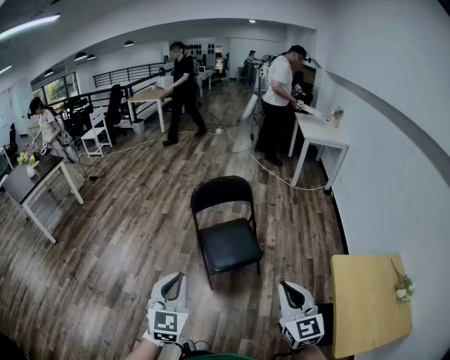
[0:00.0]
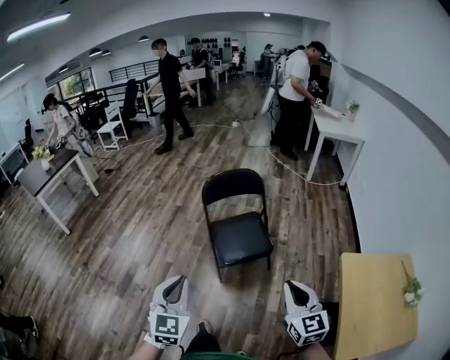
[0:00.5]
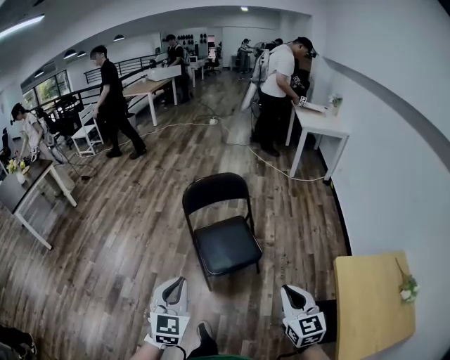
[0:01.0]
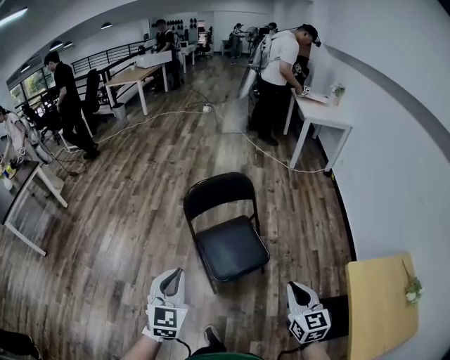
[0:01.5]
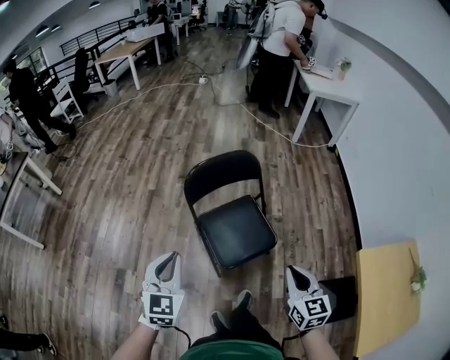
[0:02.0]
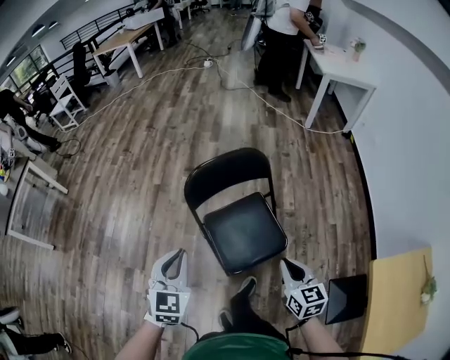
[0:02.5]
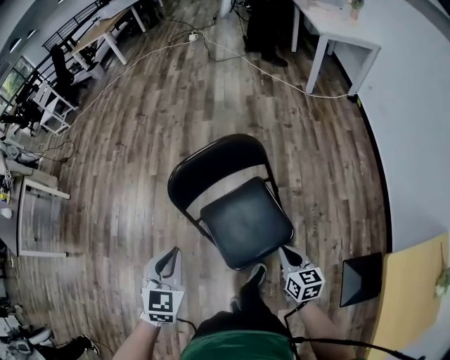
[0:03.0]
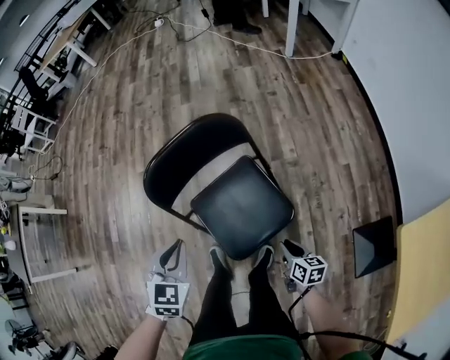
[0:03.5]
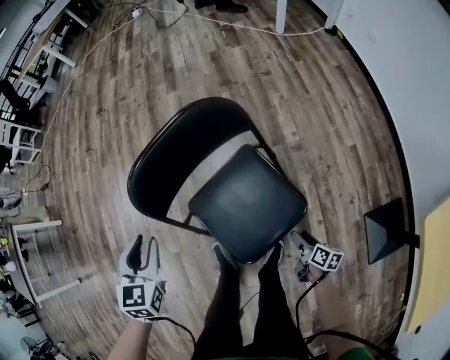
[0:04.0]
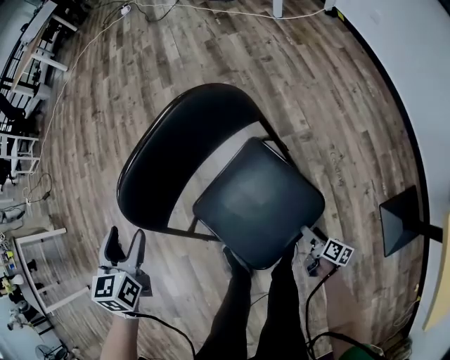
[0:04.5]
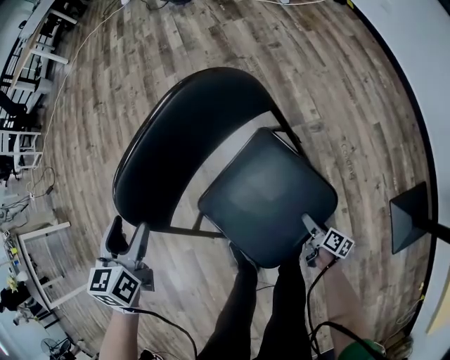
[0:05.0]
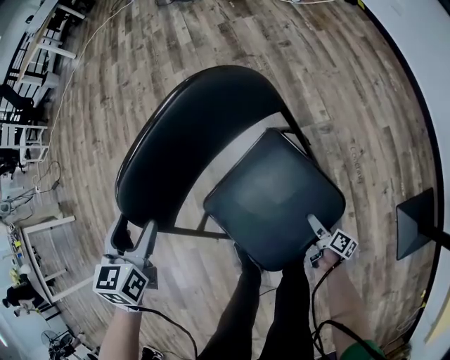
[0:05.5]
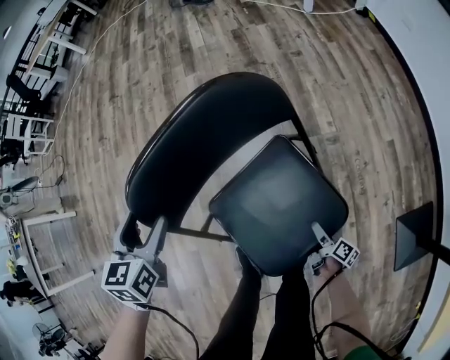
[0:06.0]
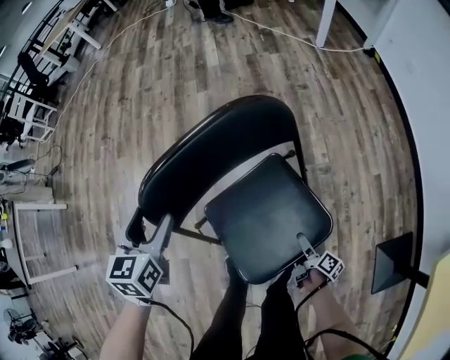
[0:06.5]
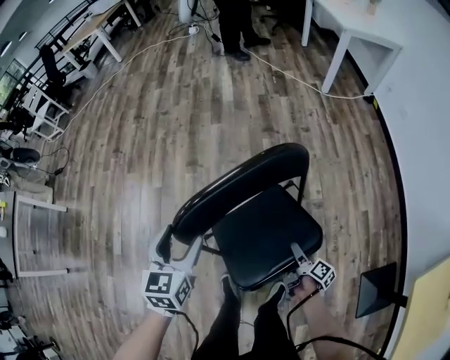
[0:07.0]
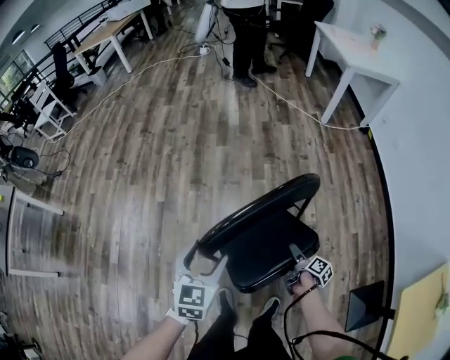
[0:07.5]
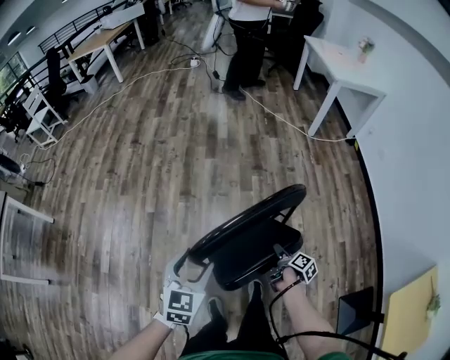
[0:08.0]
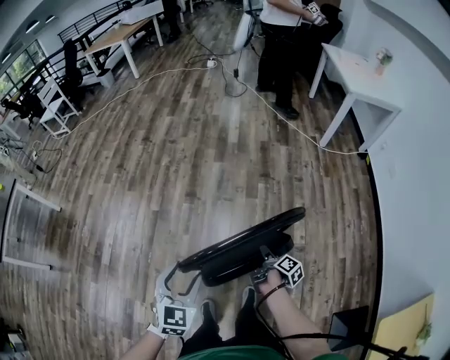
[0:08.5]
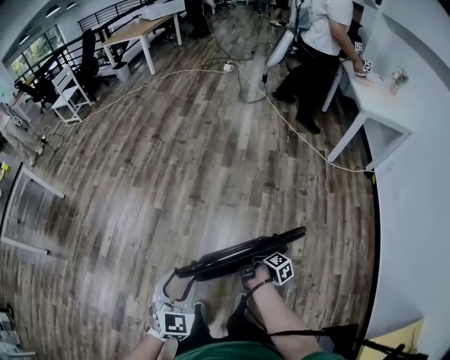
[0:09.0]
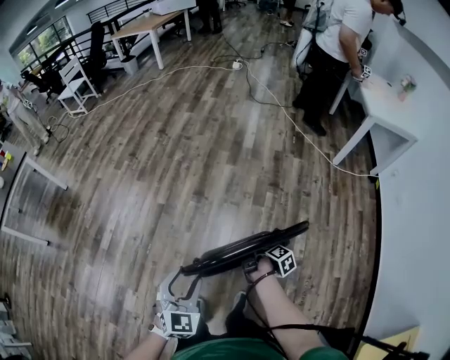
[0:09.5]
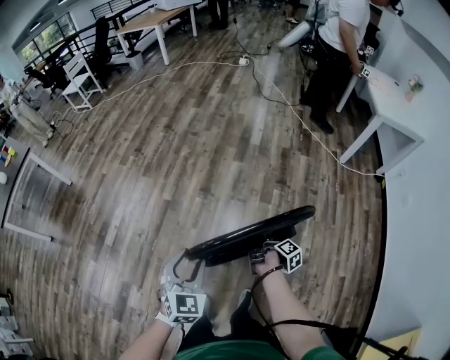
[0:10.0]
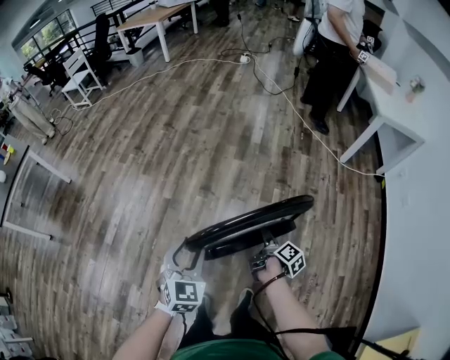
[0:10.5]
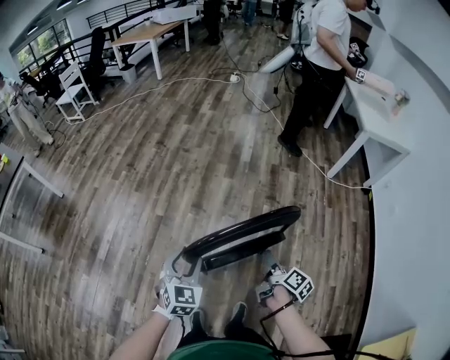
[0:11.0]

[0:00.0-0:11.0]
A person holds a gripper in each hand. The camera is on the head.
0:00.0 to 0:02.0: The right gripper shifts about 30 cm forward and downward, and turns by about 20 degrees; the left gripper travels forward by roughly 35 cm.
0:02.0 to 0:03.5: The left gripper heads forward, downward and to the right, covering about 35 cm, and swivels about 30 degrees. Meanwhile the right gripper travels downward and forward by roughly 40 cm, and rotates about 50 degrees.
0:03.5 to 0:05.5: The right gripper shifts some 30 cm downward, twists about 40 degrees clockwise, seen from behind, and opens. Meanwhile the left gripper heads forward, downward and to the left, covering some 30 cm, and opens.
0:05.5 to 0:07.5: The left gripper is displaced upward by approximately 20 cm. Meanwhile the right gripper shifts approximately 35 cm upward and forward.
0:07.5 to 0:09.0: The right gripper goes roughly 20 cm forward, upward and to the left, and closes its fingers.
0:09.0 to 0:11.0: The right gripper heads upward, covering approximately 15 cm, and swivels approximately 30 degrees, while the left gripper shifts some 10 cm forward.

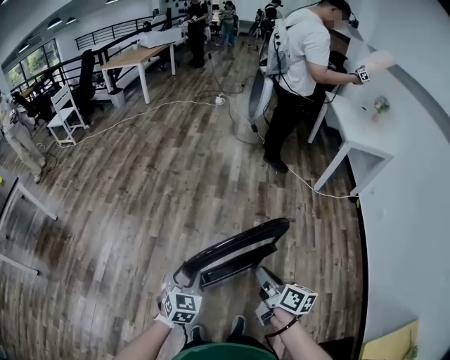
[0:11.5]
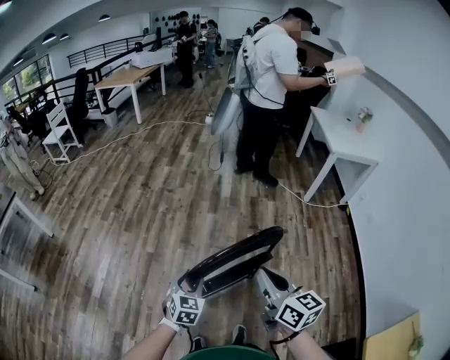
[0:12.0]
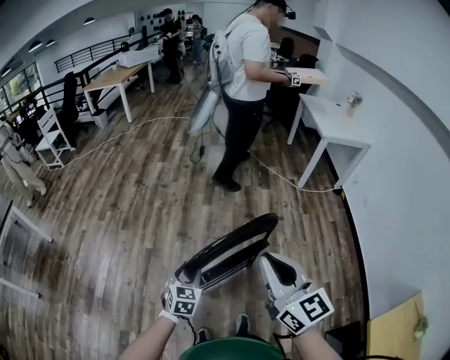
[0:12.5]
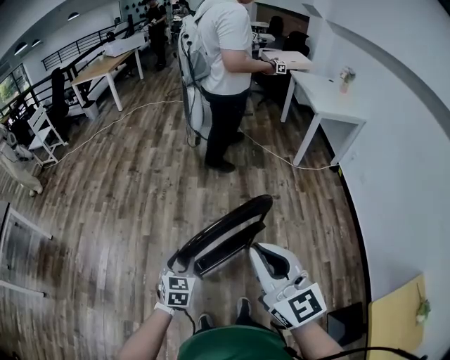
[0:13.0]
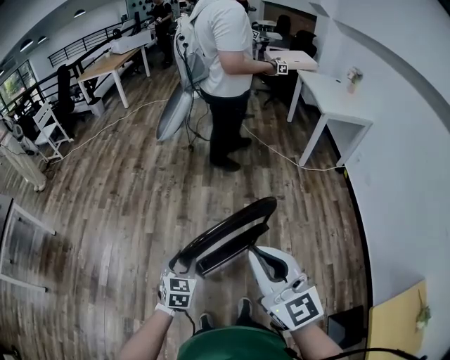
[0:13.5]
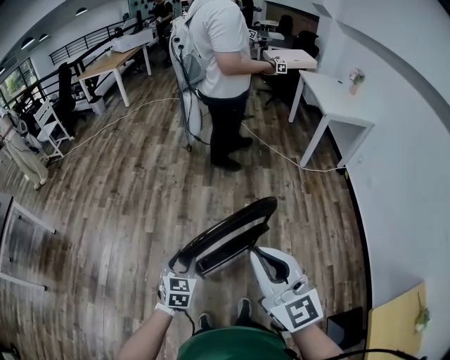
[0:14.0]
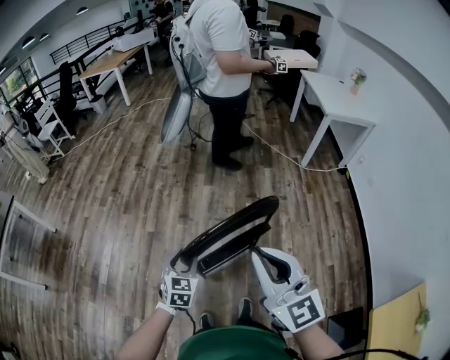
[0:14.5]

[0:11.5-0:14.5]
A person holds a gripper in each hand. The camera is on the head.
0:11.5 to 0:13.0: The right gripper goes some 25 cm upward and backward, and rolls counterclockwise, seen from behind, by some 60 degrees.
0:13.0 to 0:14.5: The grippers move only a little.

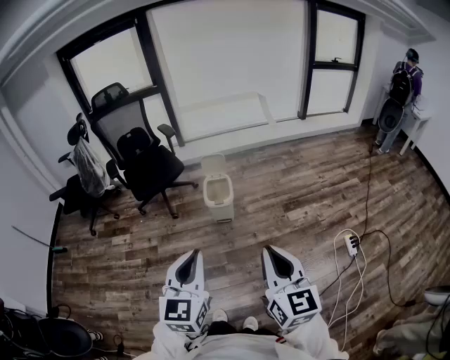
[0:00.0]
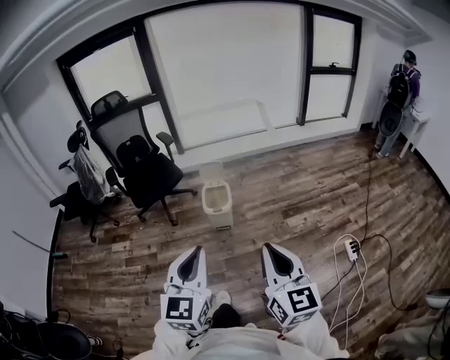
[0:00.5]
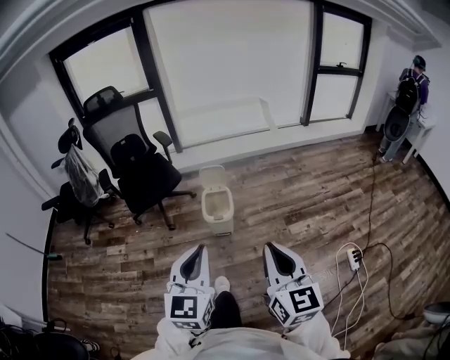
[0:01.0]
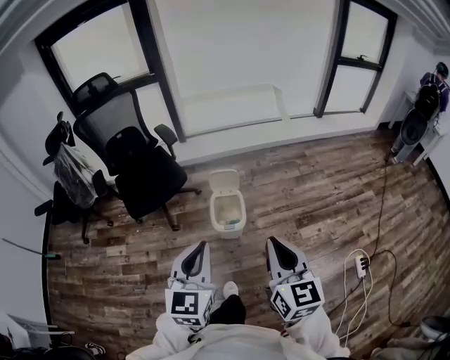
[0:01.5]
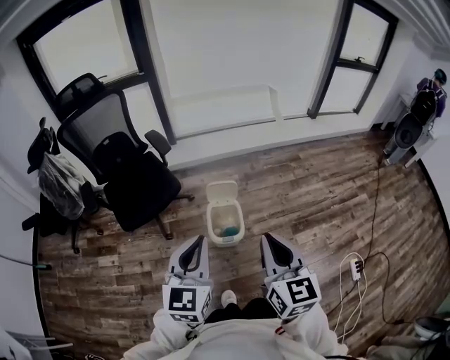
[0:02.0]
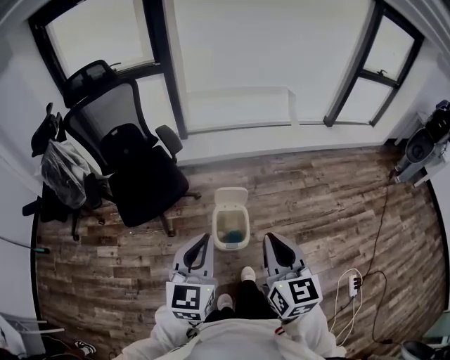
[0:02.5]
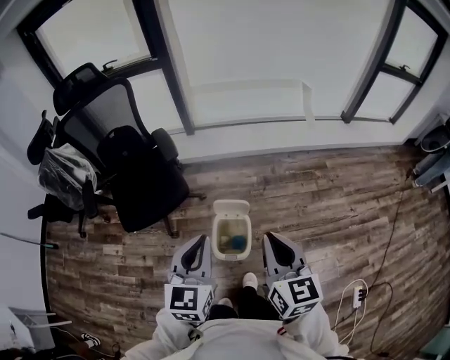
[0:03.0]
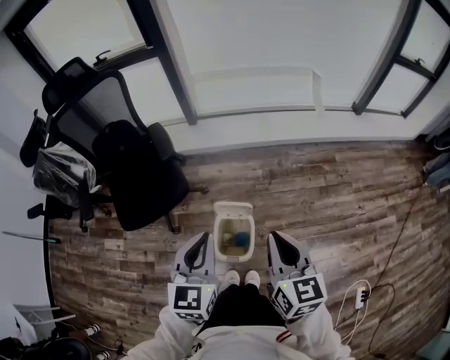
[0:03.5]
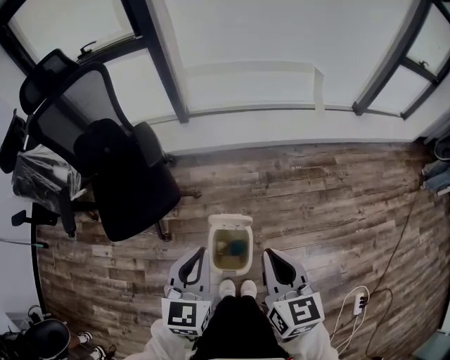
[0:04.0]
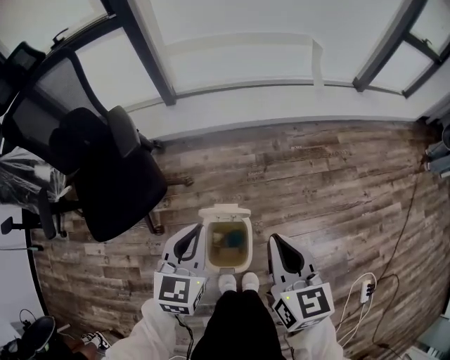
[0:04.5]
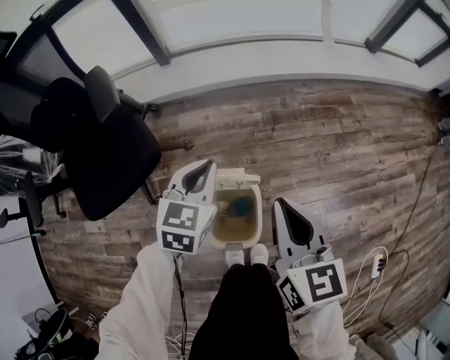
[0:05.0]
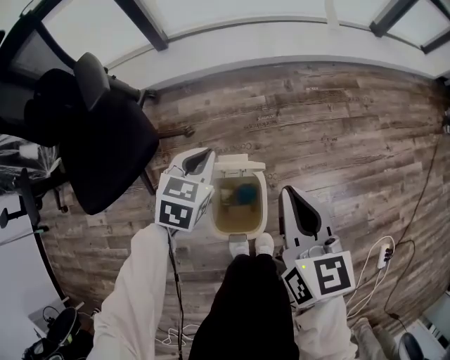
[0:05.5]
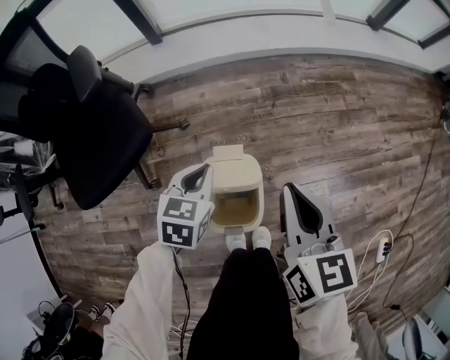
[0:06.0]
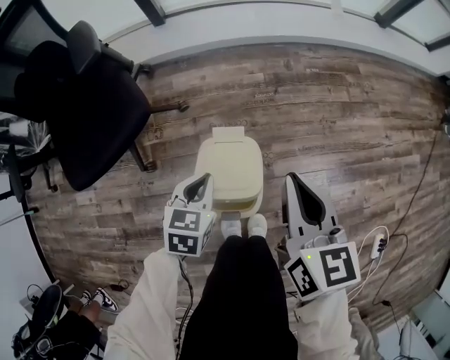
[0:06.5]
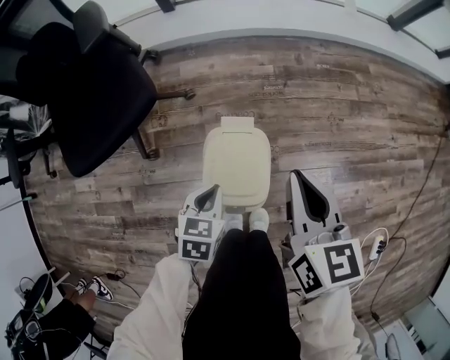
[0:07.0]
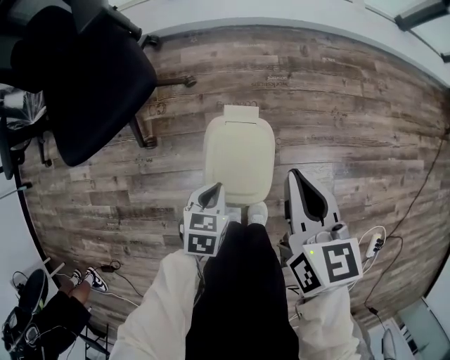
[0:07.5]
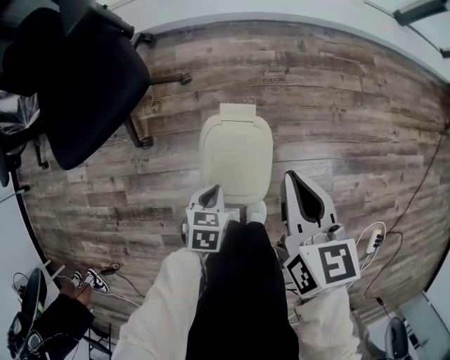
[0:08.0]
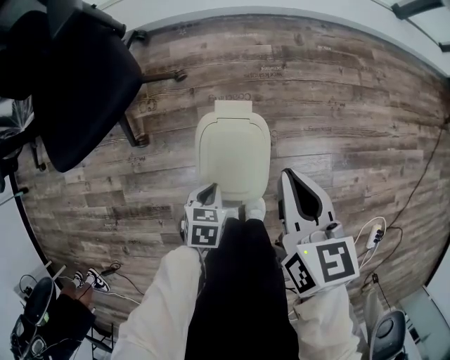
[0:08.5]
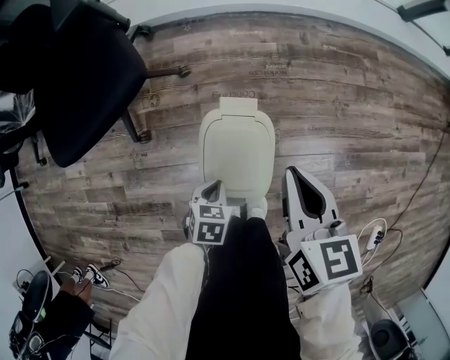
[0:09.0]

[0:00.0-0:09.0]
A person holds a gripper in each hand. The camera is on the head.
0:00.0 to 0:02.0: The pair of grippers is taken forward, approximately 50 cm.
0:02.0 to 0:04.5: Both grippers move forward and downward, approximately 50 cm.
0:04.5 to 0:07.0: The left gripper moves downward, about 30 cm, and changes its angle by some 30 degrees. The right gripper shifts approximately 15 cm downward.
0:07.0 to 0:09.0: The left gripper shifts some 10 cm downward. The right gripper is displaced downward by about 5 cm.

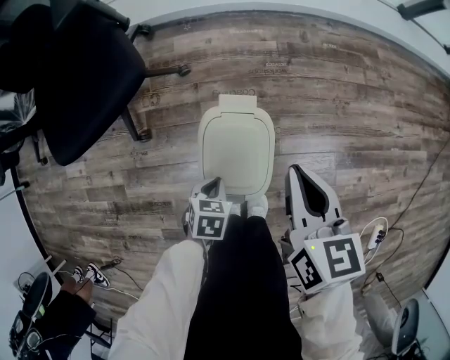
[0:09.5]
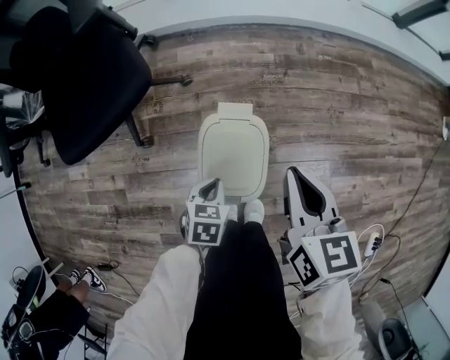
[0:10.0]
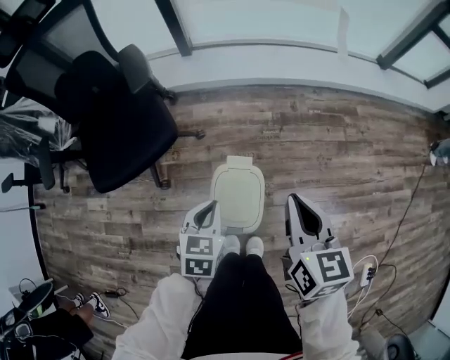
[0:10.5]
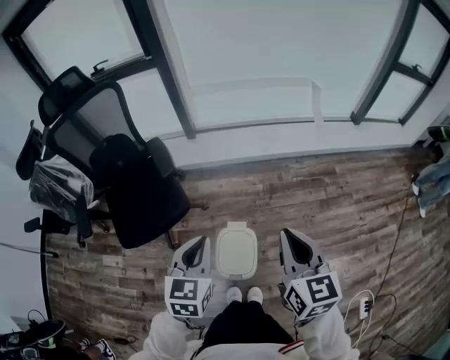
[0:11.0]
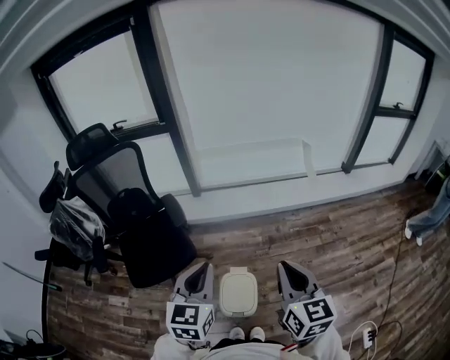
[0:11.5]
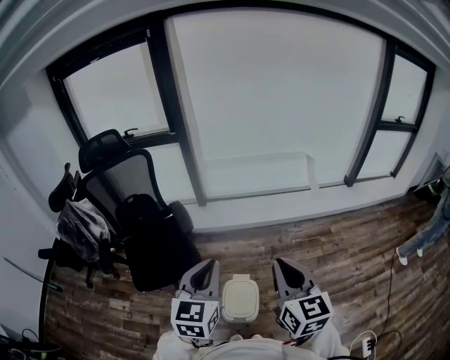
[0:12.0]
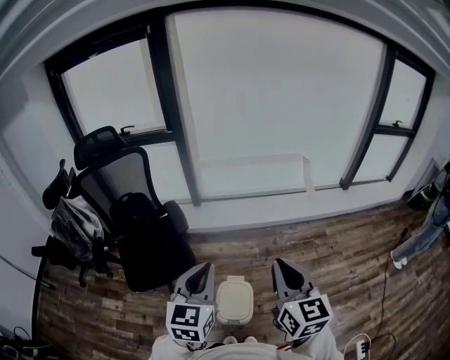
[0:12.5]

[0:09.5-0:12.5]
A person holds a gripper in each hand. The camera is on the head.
0:09.5 to 0:11.0: Both grippers travel together upward, some 50 cm. The right gripper swivels approximately 20 degrees. Meanwhile the left gripper tilts its fingers roughly 40 degrees upward.
0:11.0 to 0:12.5: The two grippers go roughly 15 cm upward.
